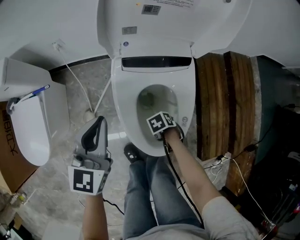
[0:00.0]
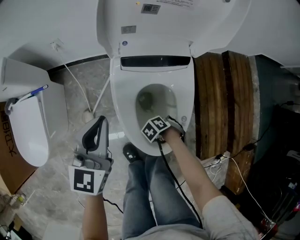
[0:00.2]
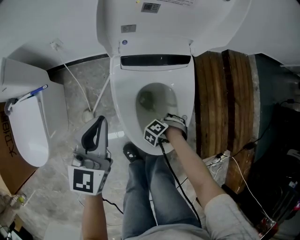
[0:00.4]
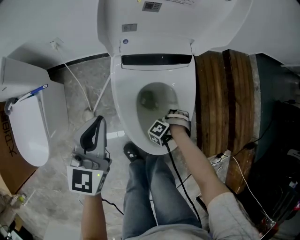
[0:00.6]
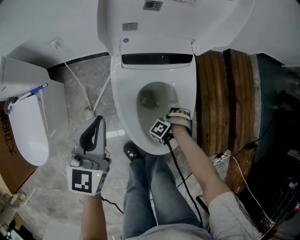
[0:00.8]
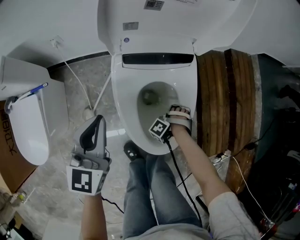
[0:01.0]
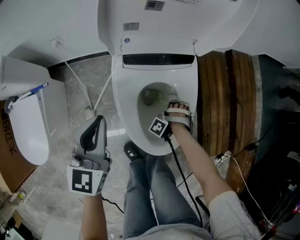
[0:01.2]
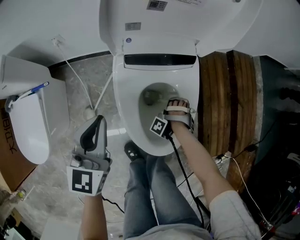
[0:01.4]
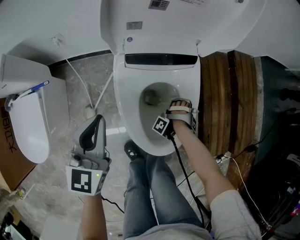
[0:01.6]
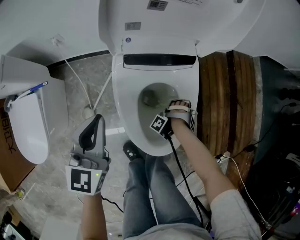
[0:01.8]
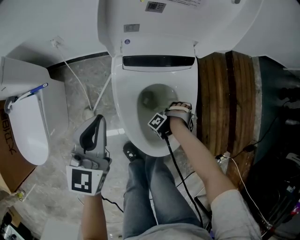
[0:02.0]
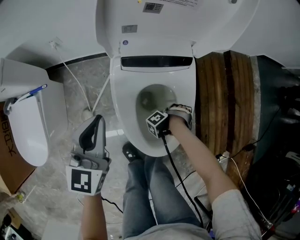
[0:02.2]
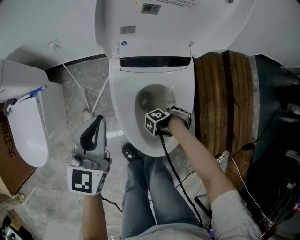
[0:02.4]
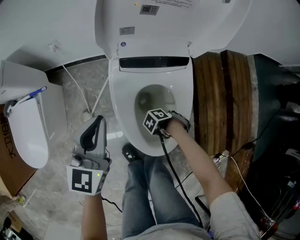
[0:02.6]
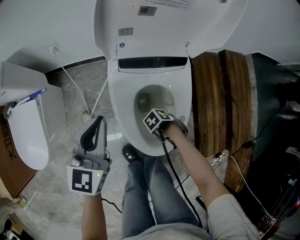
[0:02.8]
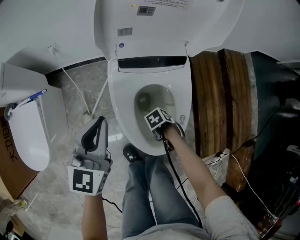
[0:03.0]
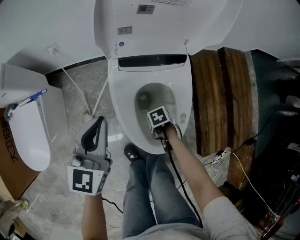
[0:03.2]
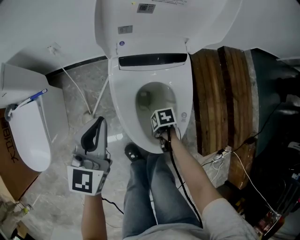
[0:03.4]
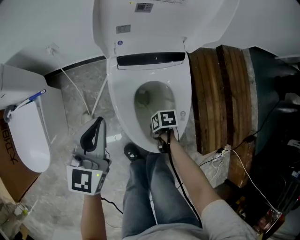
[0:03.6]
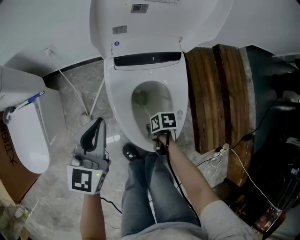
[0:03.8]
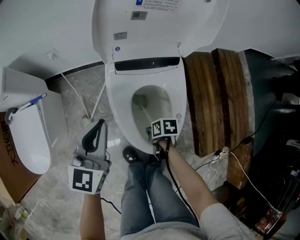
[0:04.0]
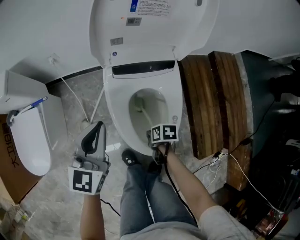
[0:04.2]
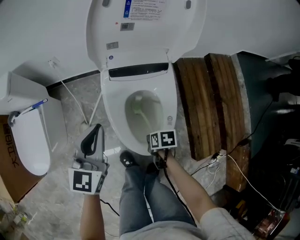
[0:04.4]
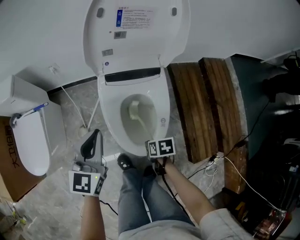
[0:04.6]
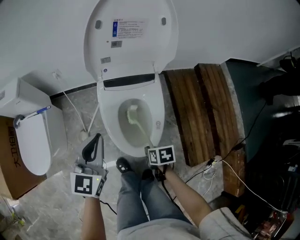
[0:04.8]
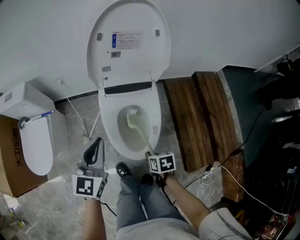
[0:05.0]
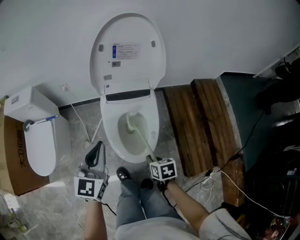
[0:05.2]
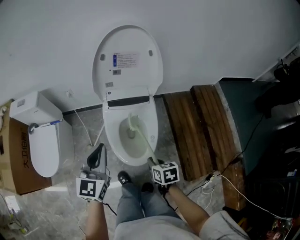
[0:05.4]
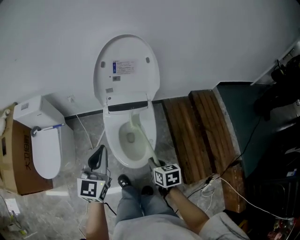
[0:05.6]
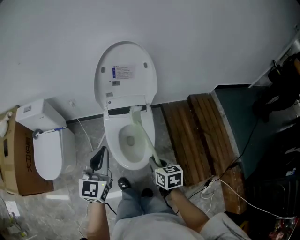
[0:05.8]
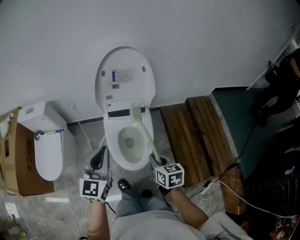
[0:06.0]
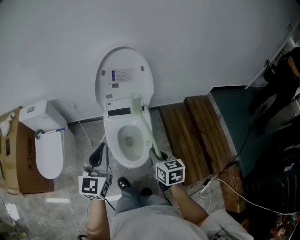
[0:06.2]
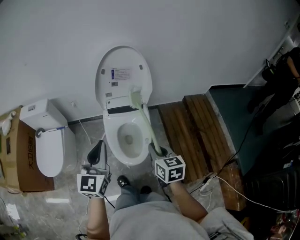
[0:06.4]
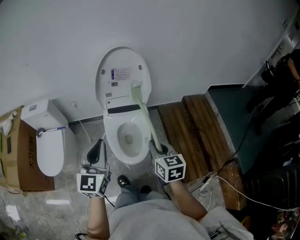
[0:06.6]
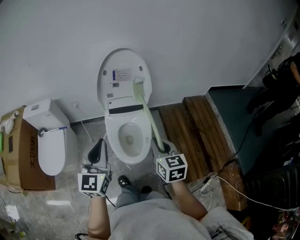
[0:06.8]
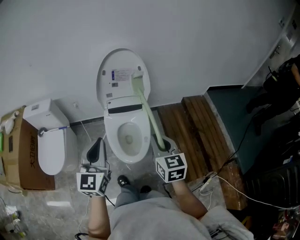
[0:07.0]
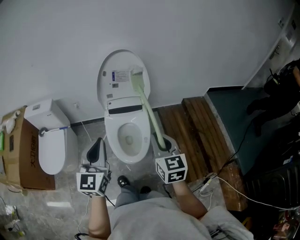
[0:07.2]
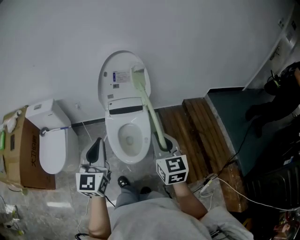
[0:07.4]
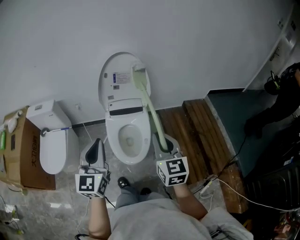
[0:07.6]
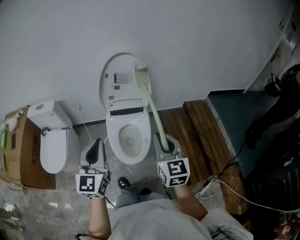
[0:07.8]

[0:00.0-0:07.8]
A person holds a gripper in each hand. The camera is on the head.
3.2 to 4.6 s: The left gripper shifts by approximately 10 cm.
4.6 to 6.2 s: The left gripper goes about 25 cm upward.
6.2 to 7.8 s: The left gripper ends up approximately 10 cm from where it was.

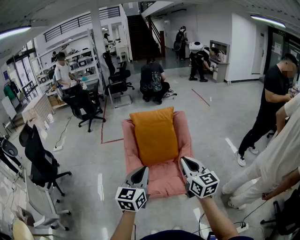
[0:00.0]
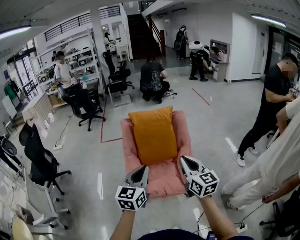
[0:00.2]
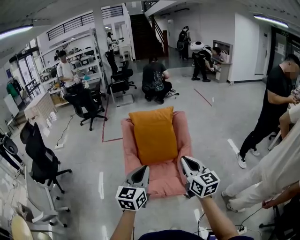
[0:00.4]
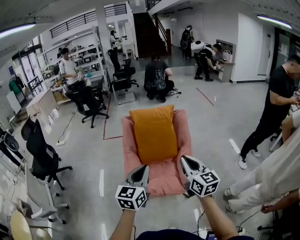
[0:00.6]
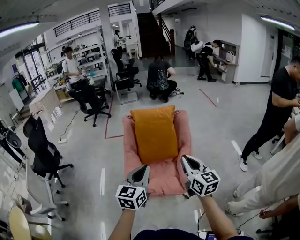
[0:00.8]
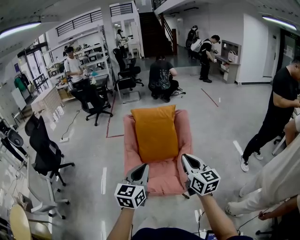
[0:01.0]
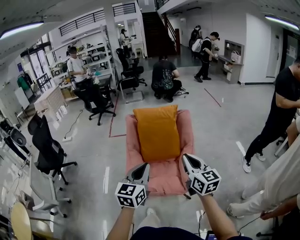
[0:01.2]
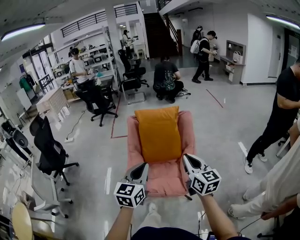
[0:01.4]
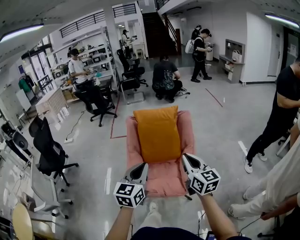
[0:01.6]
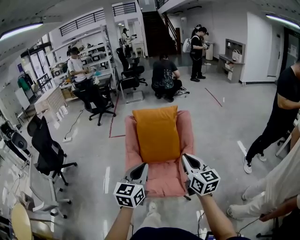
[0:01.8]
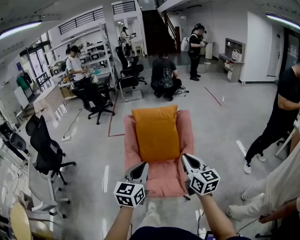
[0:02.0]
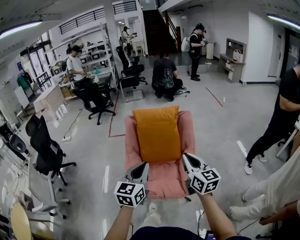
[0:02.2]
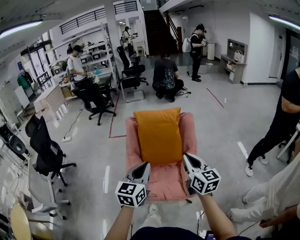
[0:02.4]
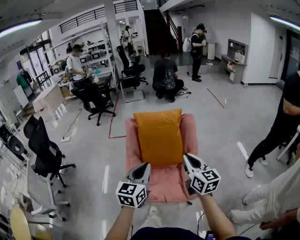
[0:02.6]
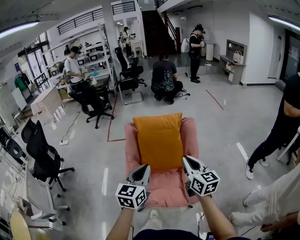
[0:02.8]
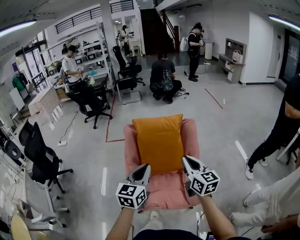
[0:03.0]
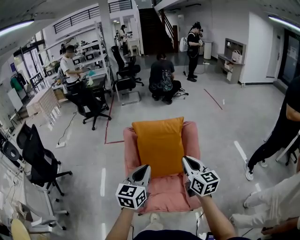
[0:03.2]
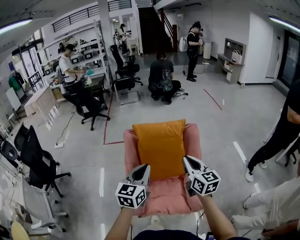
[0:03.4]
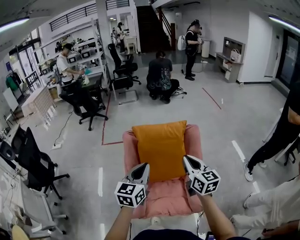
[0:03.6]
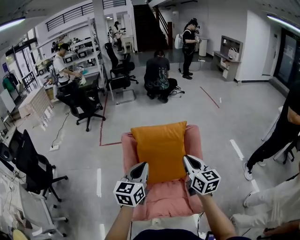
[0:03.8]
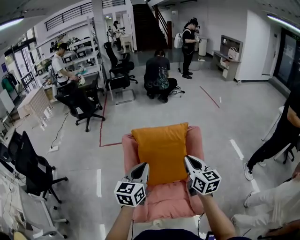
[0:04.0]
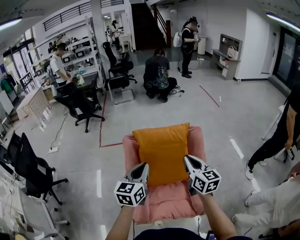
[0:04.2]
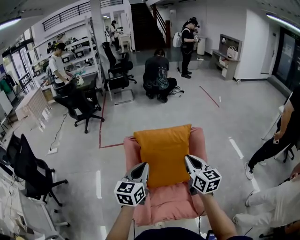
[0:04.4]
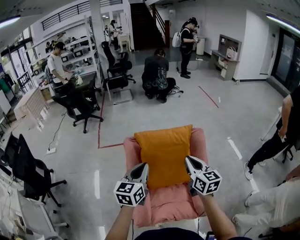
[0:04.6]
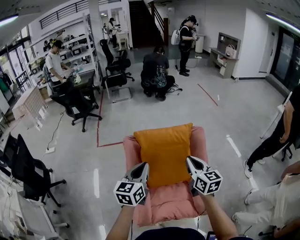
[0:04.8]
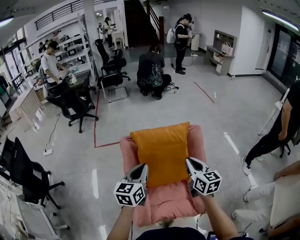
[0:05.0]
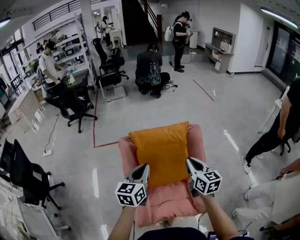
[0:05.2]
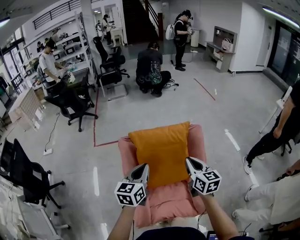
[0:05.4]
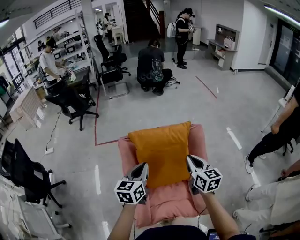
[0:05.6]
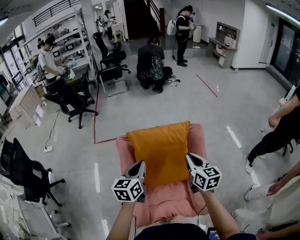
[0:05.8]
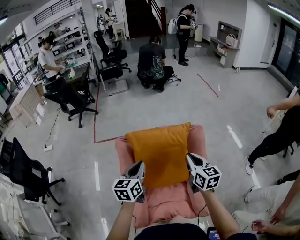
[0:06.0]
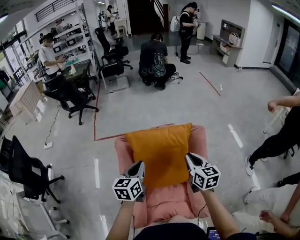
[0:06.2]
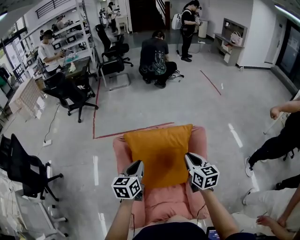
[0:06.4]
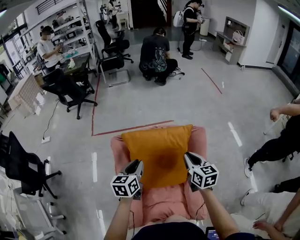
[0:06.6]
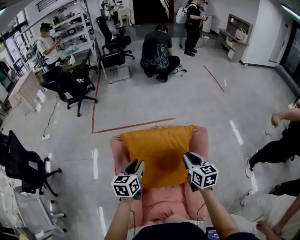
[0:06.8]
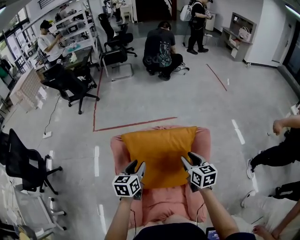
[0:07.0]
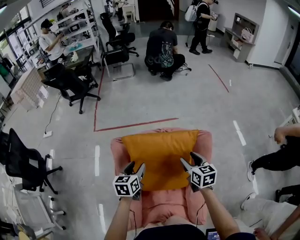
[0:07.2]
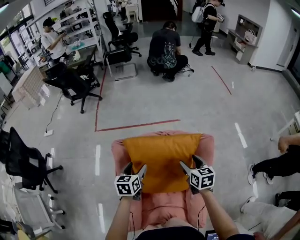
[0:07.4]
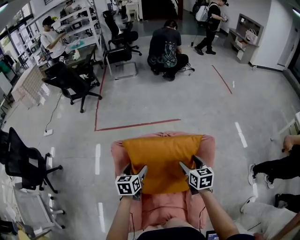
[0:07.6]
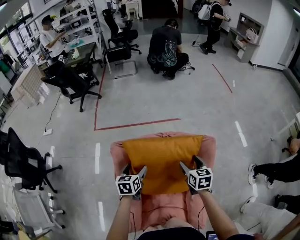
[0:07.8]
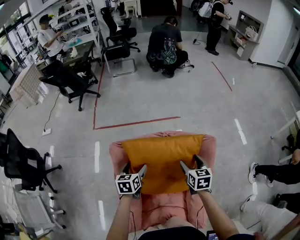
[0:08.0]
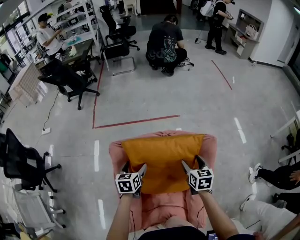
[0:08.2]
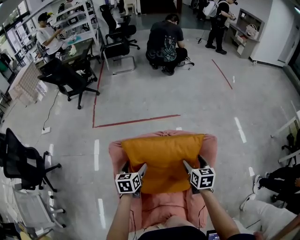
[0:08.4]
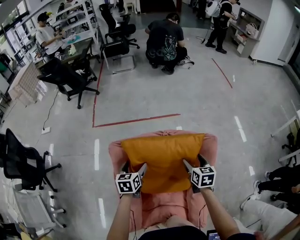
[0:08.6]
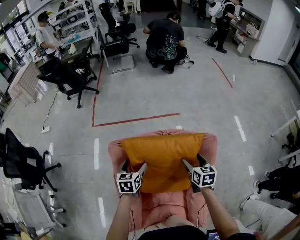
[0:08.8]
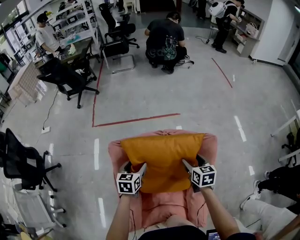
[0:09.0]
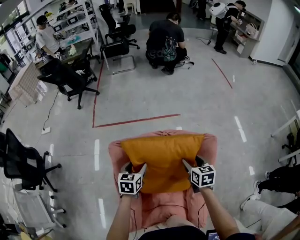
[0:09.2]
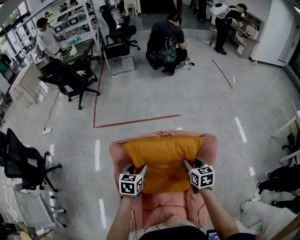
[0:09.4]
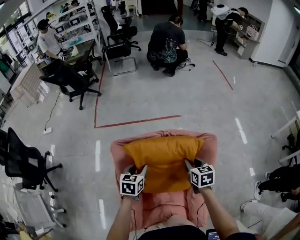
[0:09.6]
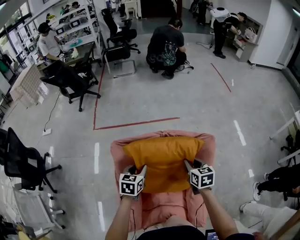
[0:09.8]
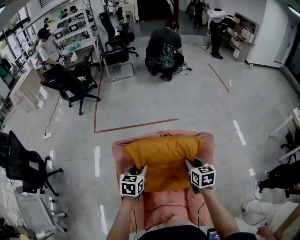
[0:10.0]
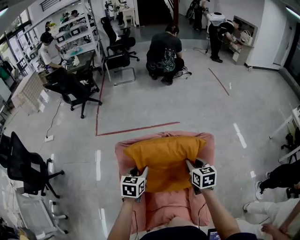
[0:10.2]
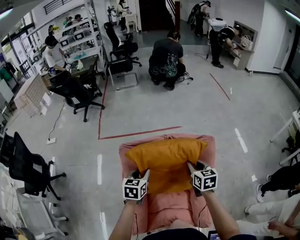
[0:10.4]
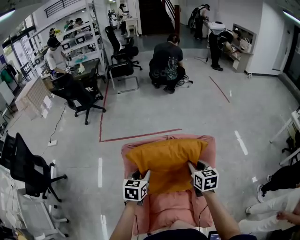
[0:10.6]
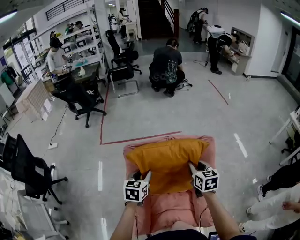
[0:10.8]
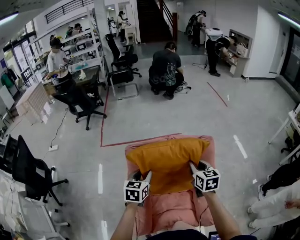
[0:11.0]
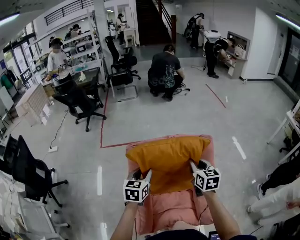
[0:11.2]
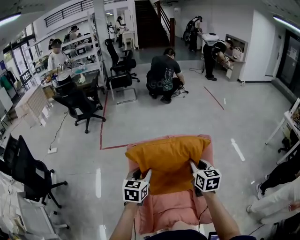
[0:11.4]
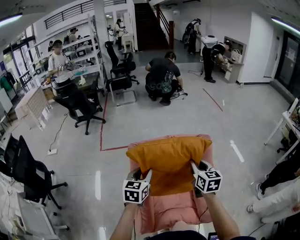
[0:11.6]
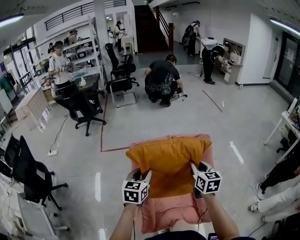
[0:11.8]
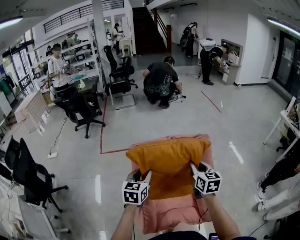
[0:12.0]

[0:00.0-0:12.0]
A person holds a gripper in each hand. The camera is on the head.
0.0 to 1.6 s: The two grippers go about 10 cm to the right.
1.6 to 3.0 s: The two grippers go about 15 cm forward.
3.0 to 4.4 s: The right gripper goes roughly 15 cm forward, while the left gripper goes about 20 cm forward and to the left.
4.4 to 6.0 s: The grippers both shift forward and downward by roughly 10 cm.
6.0 to 7.6 s: The right gripper heads forward and downward, covering approximately 20 cm, and opens up; the left gripper moves downward and forward, approximately 20 cm, swivels approximately 20 degrees, and opens its fingers.
7.6 to 9.0 s: The grippers move only a little.
9.0 to 10.4 s: The two grippers go about 10 cm upward and backward. The left gripper closes its fingers. The right gripper closes its fingers.
10.4 to 12.0 s: The two grippers go roughly 15 cm backward and upward.

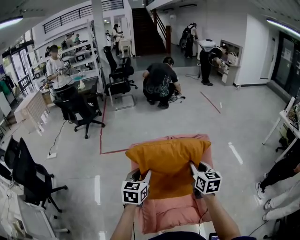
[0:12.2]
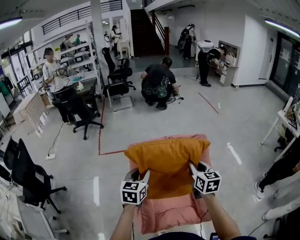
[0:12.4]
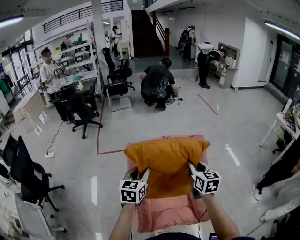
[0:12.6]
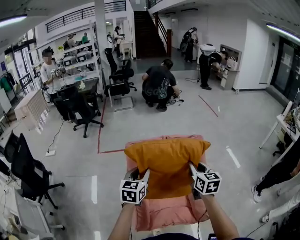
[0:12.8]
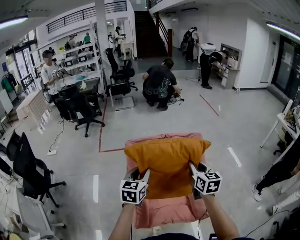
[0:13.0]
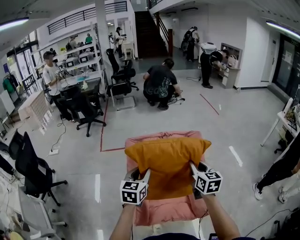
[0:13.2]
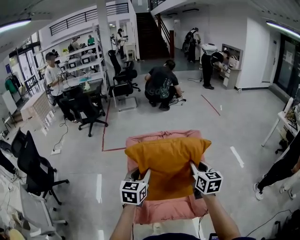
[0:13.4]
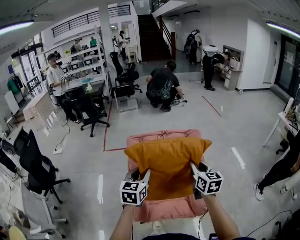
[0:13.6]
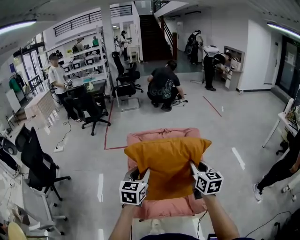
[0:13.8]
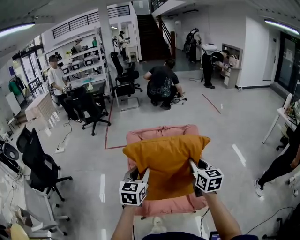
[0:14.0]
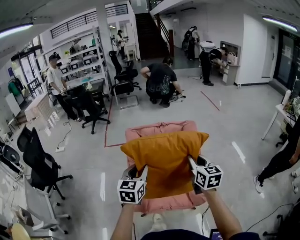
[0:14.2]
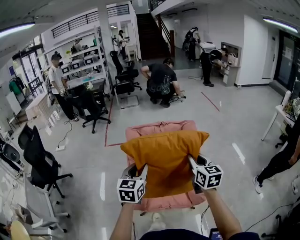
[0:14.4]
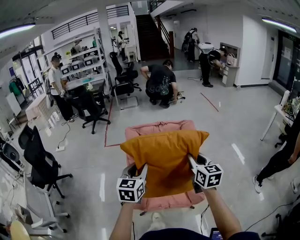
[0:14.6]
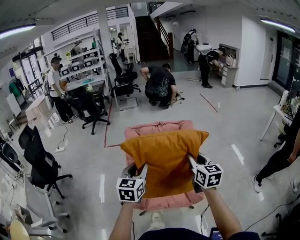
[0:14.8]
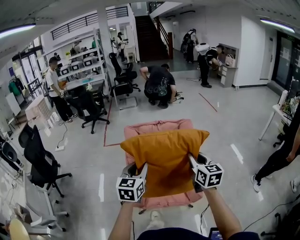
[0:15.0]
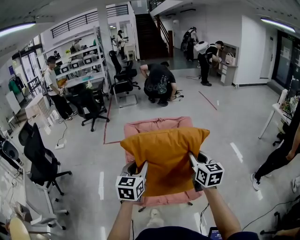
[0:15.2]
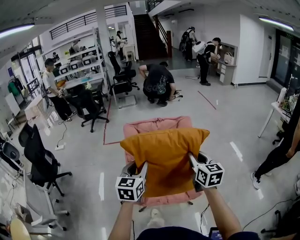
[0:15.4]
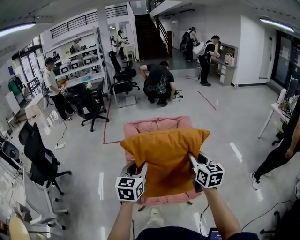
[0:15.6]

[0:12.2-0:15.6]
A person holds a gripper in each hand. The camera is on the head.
12.2 to 13.8 s: Both grippers travel together backward and to the right, approximately 15 cm.
13.8 to 15.6 s: Both grippers move backward, roughly 10 cm.

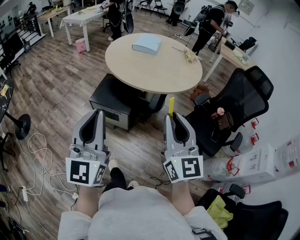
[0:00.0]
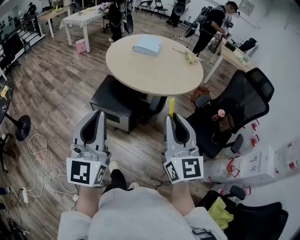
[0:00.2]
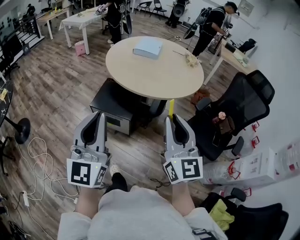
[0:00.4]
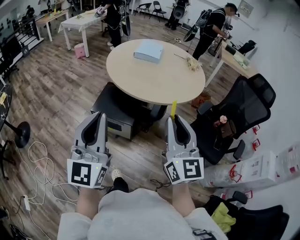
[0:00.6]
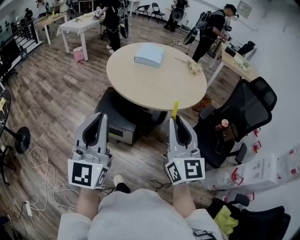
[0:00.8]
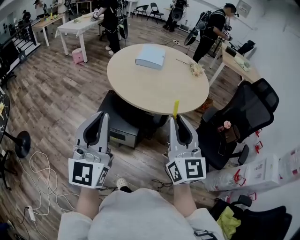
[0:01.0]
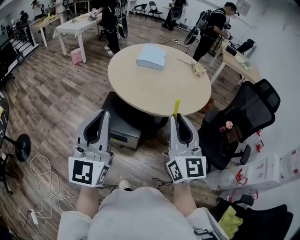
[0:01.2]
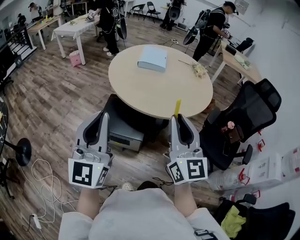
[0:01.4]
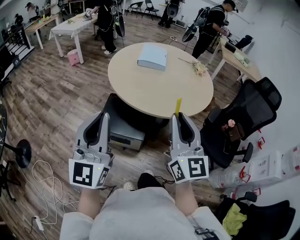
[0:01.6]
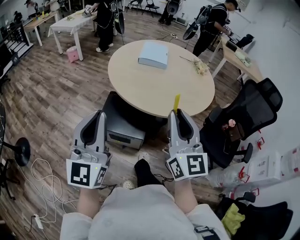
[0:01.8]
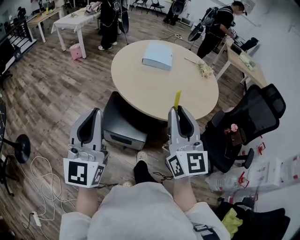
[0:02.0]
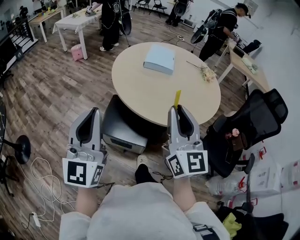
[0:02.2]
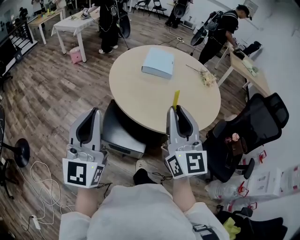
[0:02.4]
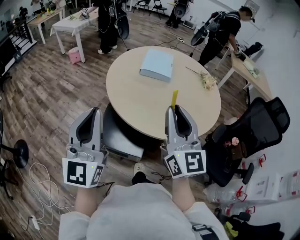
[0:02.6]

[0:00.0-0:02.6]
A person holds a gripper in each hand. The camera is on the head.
0.0 to 1.2 s: The grippers both shift forward and to the left by roughly 20 cm.
1.2 to 2.6 s: Both grippers travel together forward, some 20 cm.
